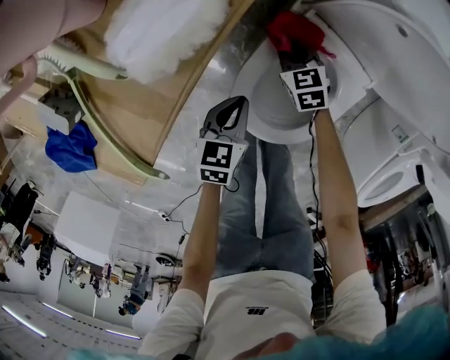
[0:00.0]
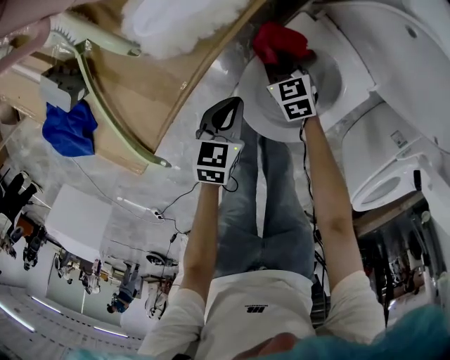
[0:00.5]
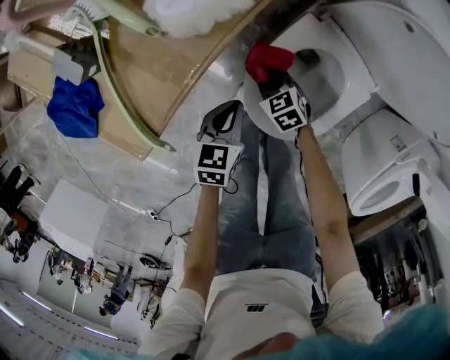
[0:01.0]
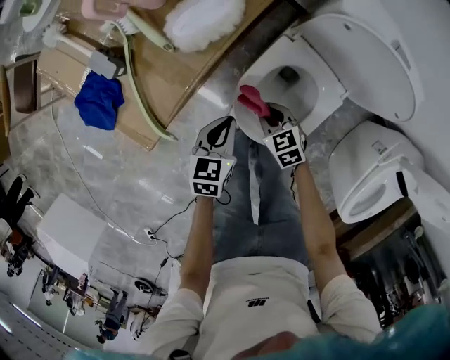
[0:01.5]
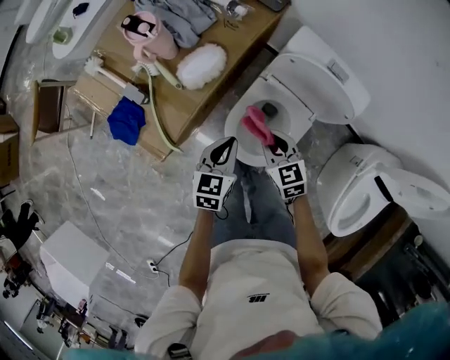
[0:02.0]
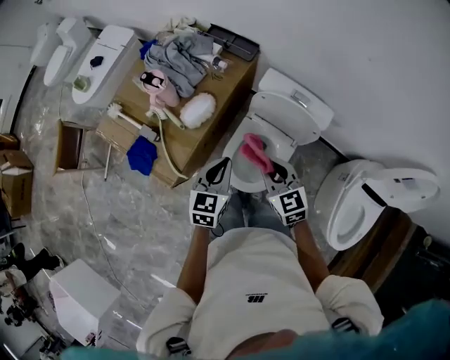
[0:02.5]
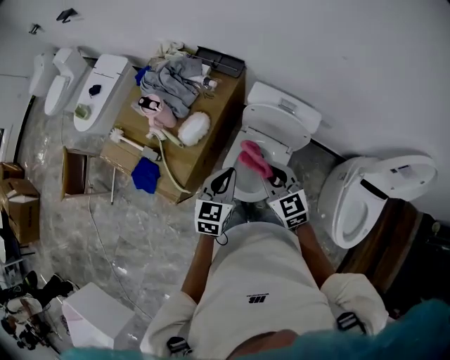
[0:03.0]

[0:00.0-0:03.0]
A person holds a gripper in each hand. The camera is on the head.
0.0 to 1.5 s: The right gripper travels backward, upward and to the left by about 20 cm; the left gripper shifts about 15 cm upward.
1.5 to 3.0 s: The grippers both shift upward by some 40 cm. The right gripper rotates roughly 30 degrees; the left gripper swivels about 30 degrees.

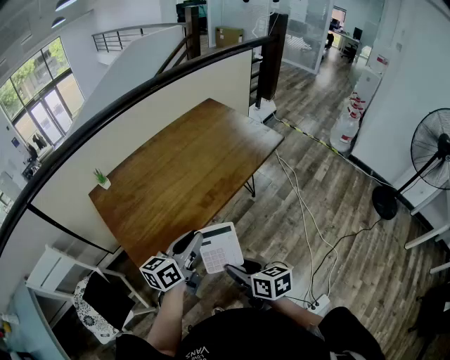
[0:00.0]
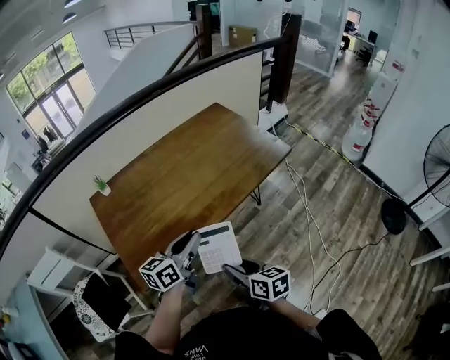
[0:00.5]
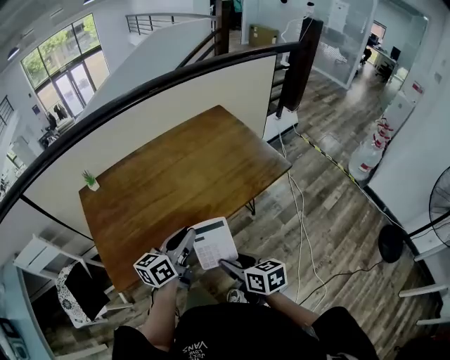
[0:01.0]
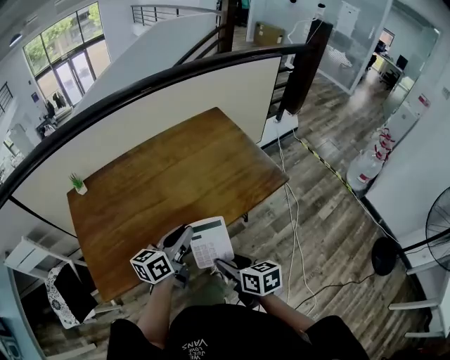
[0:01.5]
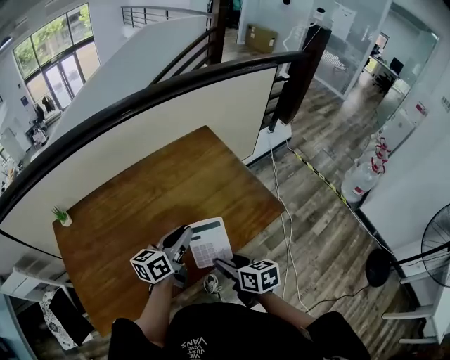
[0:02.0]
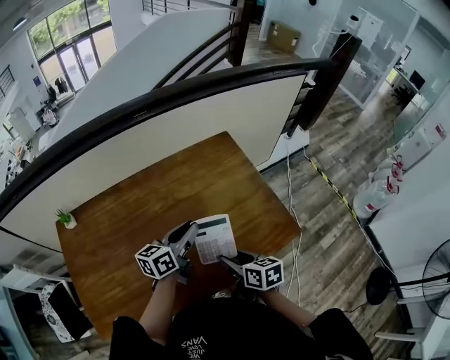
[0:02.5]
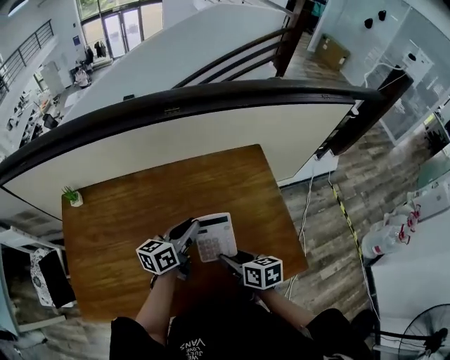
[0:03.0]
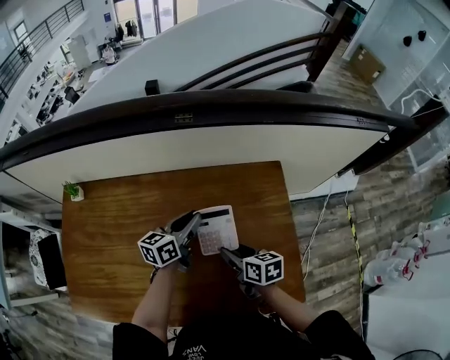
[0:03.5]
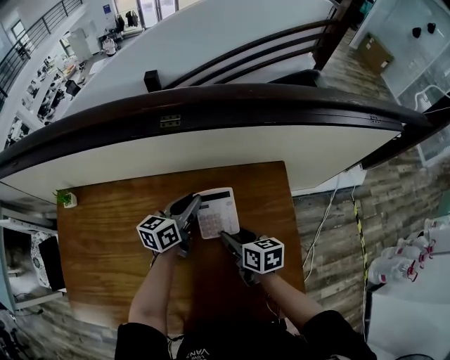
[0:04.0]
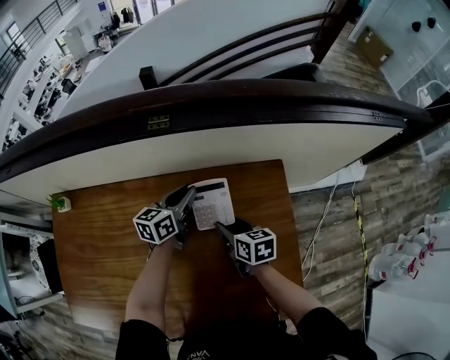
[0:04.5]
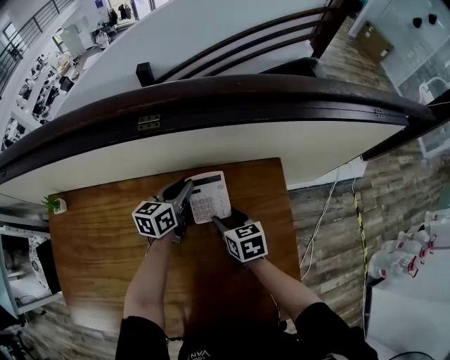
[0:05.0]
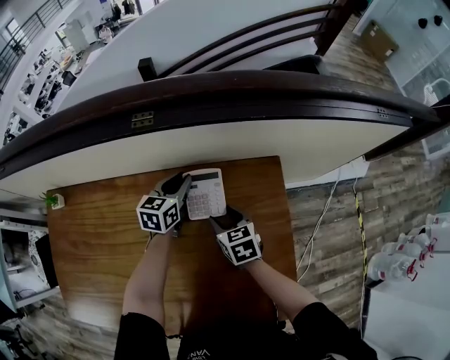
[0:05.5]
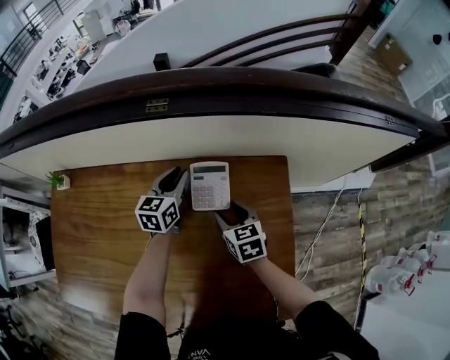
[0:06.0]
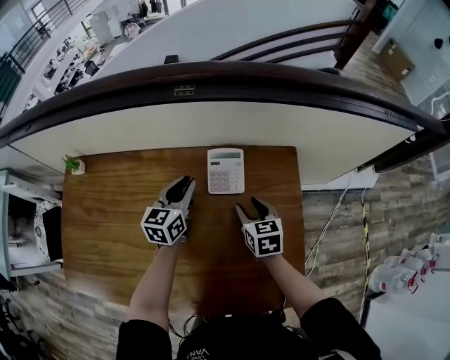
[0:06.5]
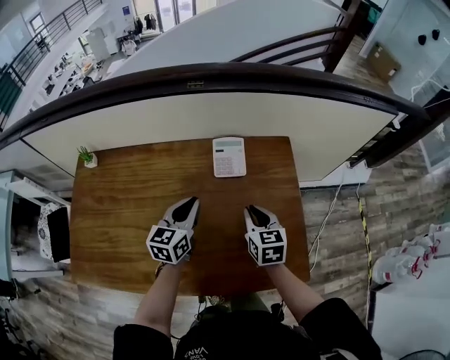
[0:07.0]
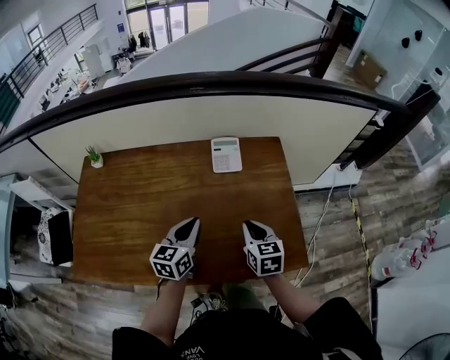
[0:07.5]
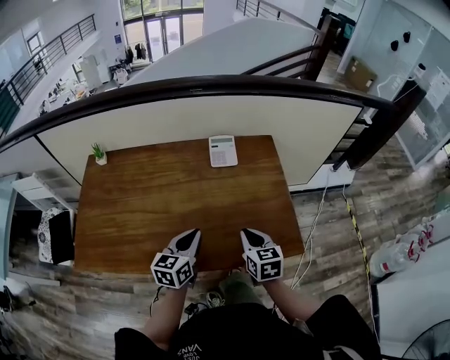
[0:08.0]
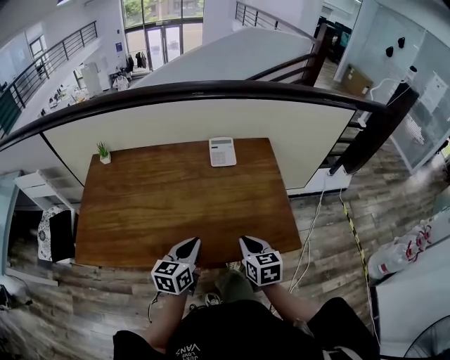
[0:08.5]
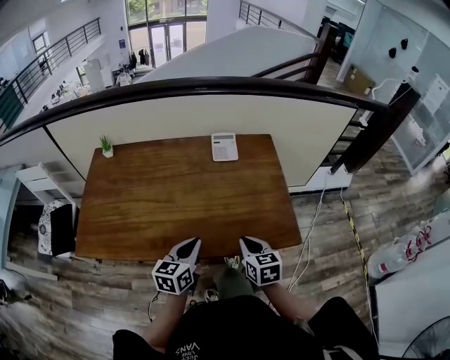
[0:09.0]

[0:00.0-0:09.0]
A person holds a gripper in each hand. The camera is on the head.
0.0 to 2.0 s: Both grippers are carried forward and to the right, approximately 40 cm.
2.0 to 4.5 s: The right gripper moves approximately 40 cm, and swivels roughly 20 degrees; the left gripper shifts by about 40 cm, and rotates approximately 30 degrees.
4.5 to 7.0 s: The left gripper shifts roughly 20 cm backward. The right gripper travels backward and upward by about 15 cm, changes its angle by about 20 degrees, and closes.
7.0 to 9.0 s: Both grippers travel together backward, about 25 cm.

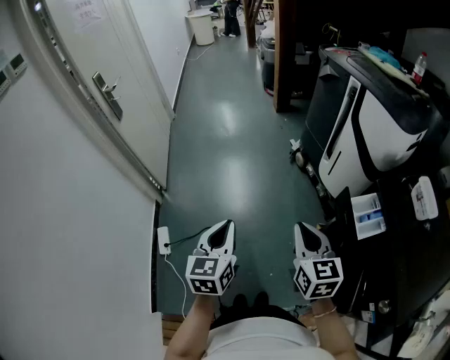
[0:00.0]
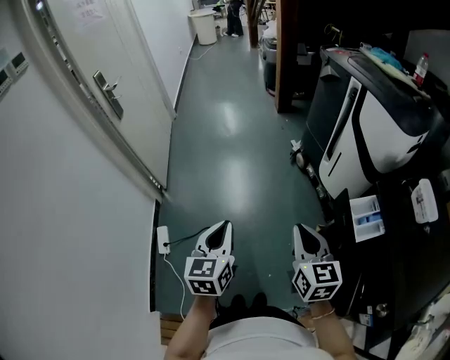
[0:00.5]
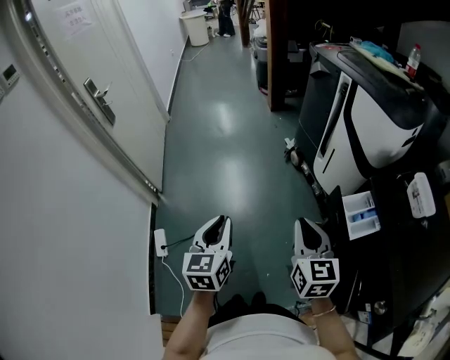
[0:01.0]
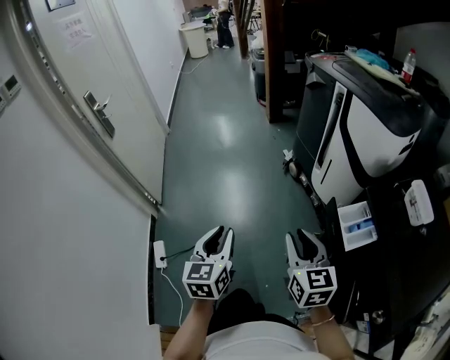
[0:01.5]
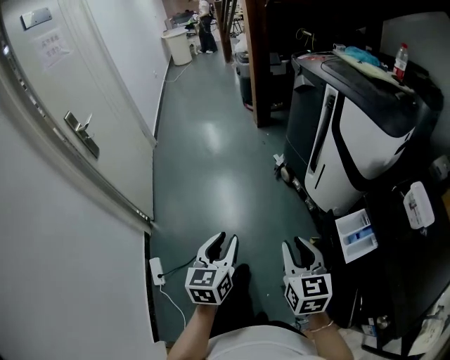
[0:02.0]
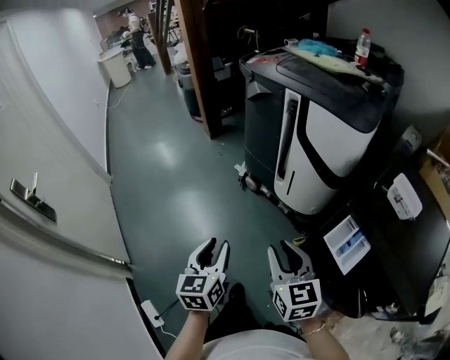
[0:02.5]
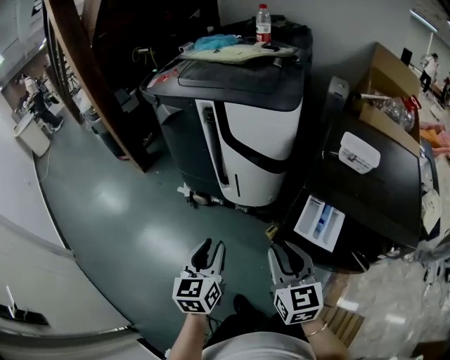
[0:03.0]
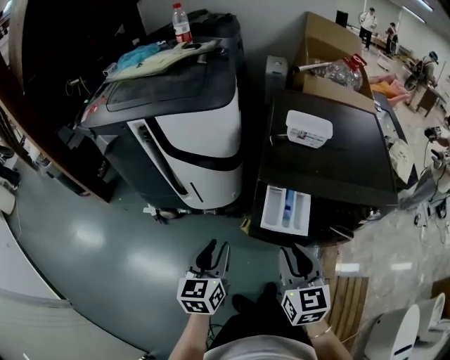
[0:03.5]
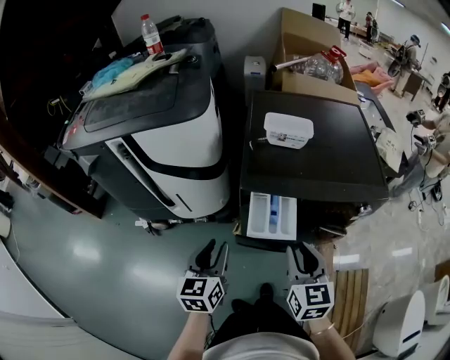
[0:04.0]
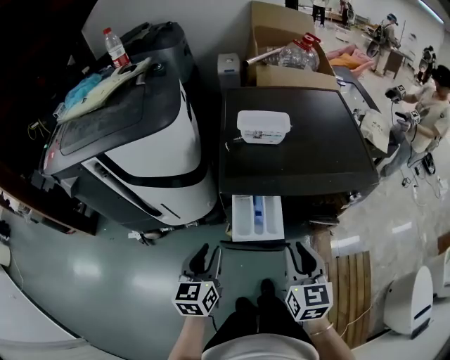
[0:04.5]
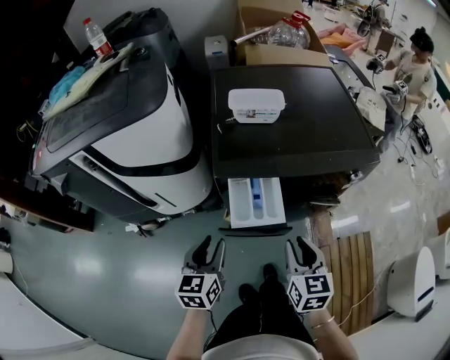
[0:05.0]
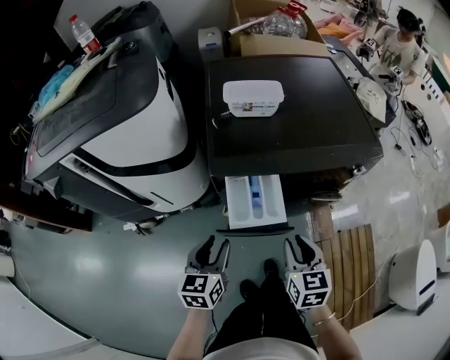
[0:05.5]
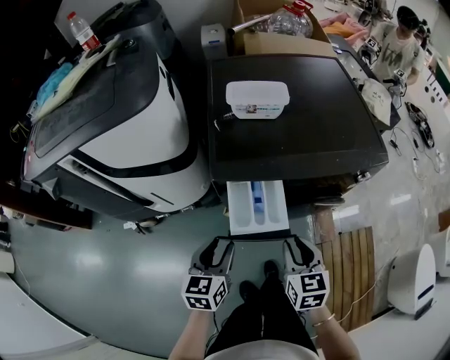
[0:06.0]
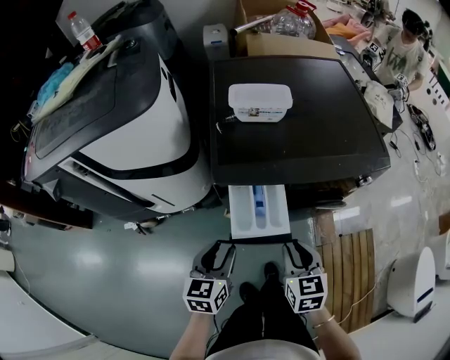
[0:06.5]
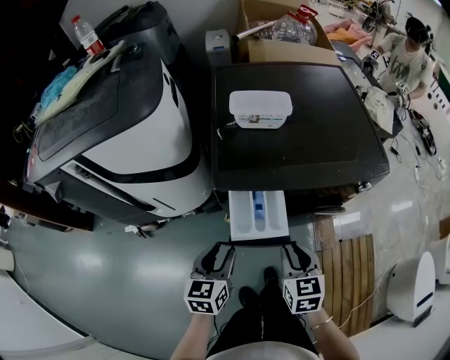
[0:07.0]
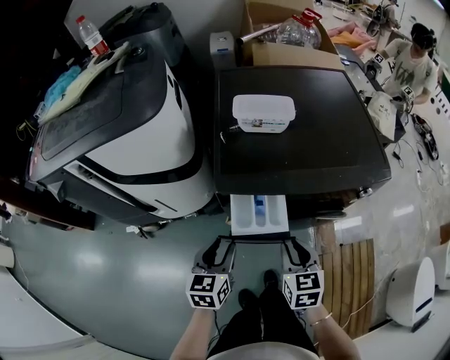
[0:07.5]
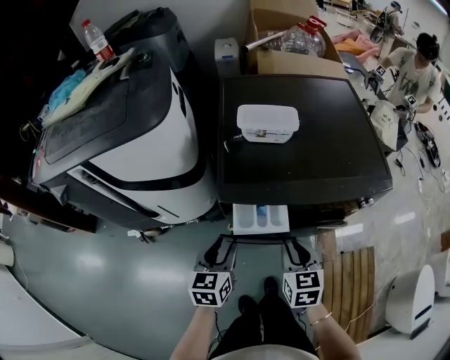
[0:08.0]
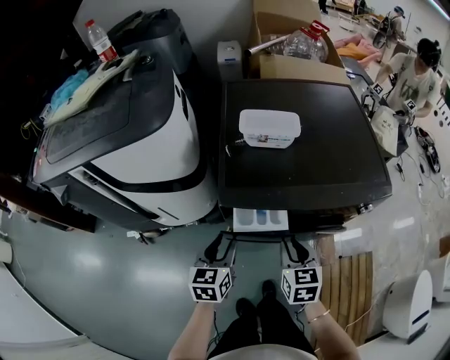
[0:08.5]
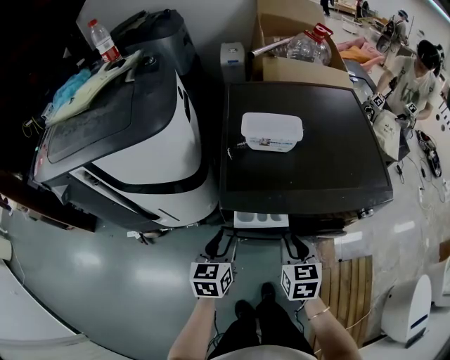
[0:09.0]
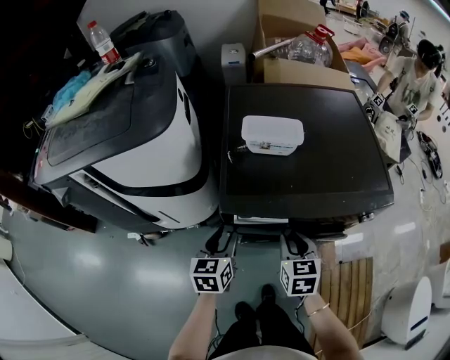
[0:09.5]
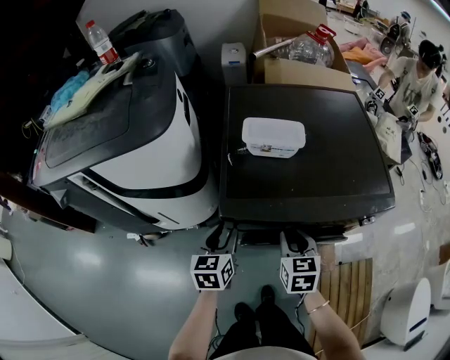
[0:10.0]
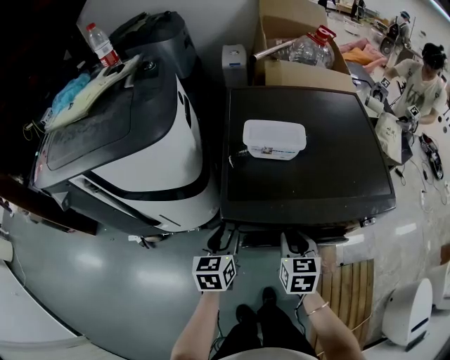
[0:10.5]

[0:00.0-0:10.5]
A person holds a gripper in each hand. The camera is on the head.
0.0 to 2.0 s: The right gripper heads forward, covering roughly 5 cm, and opens up; the left gripper heads forward and to the right, covering roughly 10 cm, and opens its fingers.
2.0 to 4.0 s: The right gripper changes place by some 20 cm, and turns by about 70 degrees. Meanwhile the left gripper moves about 30 cm, and turns by approximately 70 degrees.
4.0 to 6.5 s: The right gripper goes approximately 10 cm downward, while the left gripper moves downward and to the right, approximately 10 cm.
6.5 to 8.5 s: Both grippers move forward, about 10 cm.
8.5 to 10.5 s: Both grippers move forward, some 5 cm.

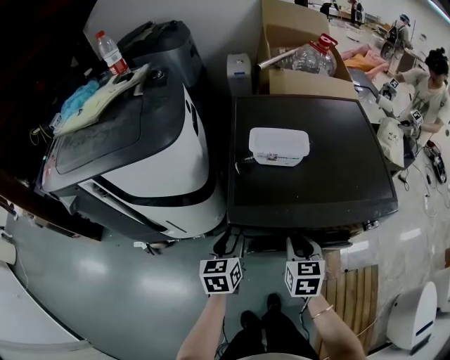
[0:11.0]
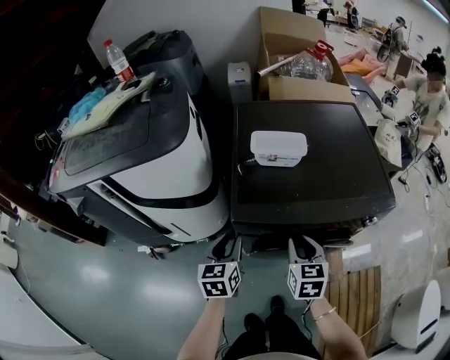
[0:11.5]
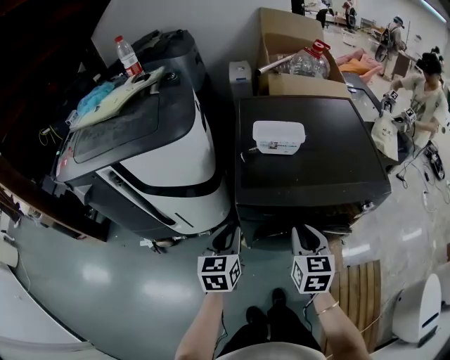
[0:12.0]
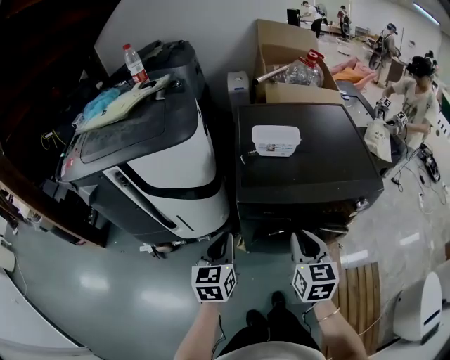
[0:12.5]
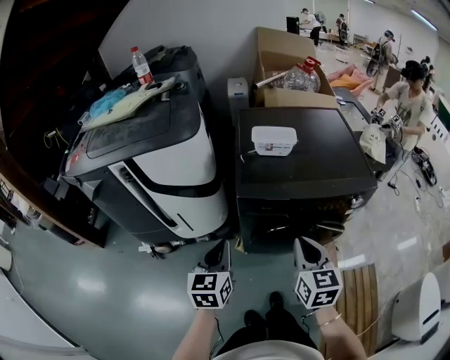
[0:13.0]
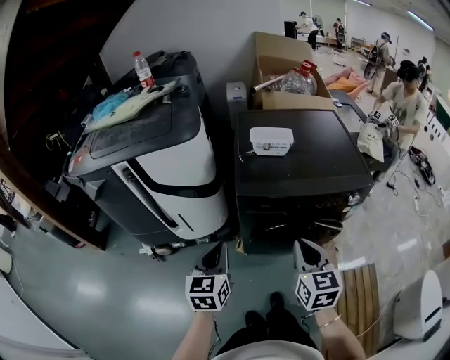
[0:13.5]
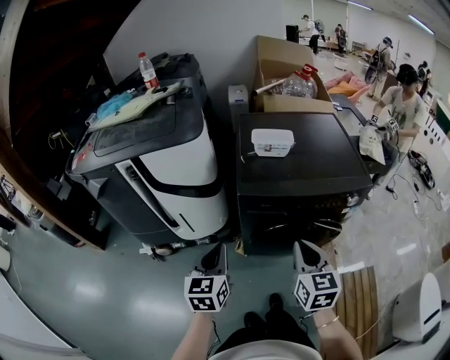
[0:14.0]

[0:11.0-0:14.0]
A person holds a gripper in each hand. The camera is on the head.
11.0 to 12.5 s: The left gripper goes about 15 cm backward and upward, and closes; the right gripper goes some 15 cm upward and backward.
12.5 to 14.0 s: The two grippers go approximately 10 cm backward.

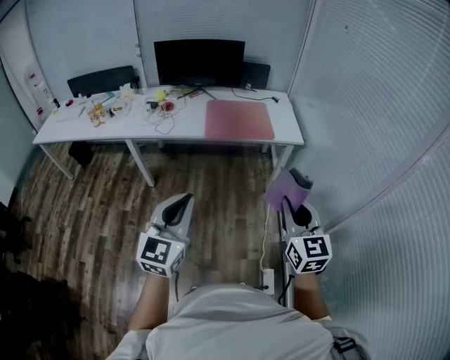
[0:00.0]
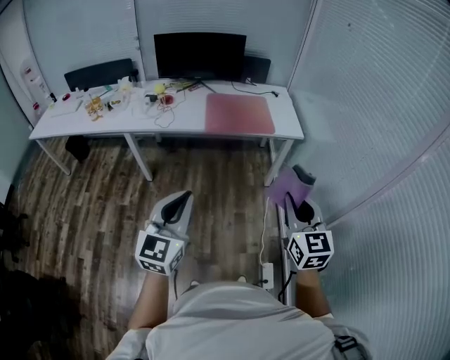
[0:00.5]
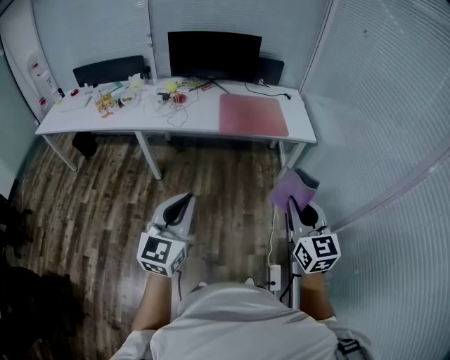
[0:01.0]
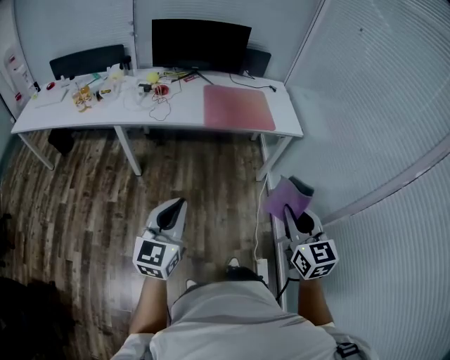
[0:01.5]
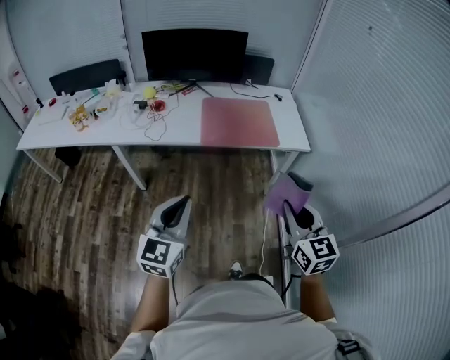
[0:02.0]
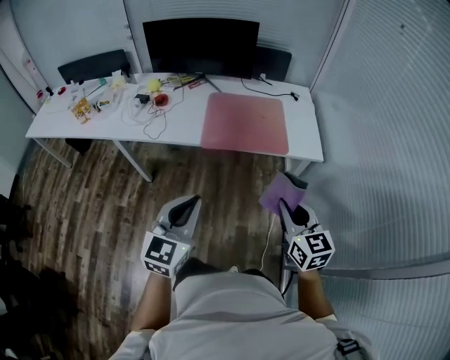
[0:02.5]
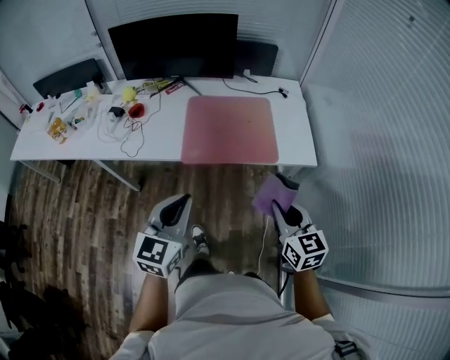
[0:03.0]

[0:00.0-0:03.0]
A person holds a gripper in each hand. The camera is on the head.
0.0 to 1.5 s: The left gripper is displaced to the left and downward by roughly 15 cm. Meanwhile the right gripper is displaced to the left by approximately 10 cm.
1.5 to 3.0 s: Both grippers are carried forward and to the right, about 40 cm.
